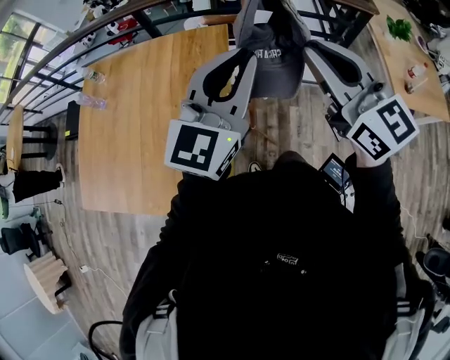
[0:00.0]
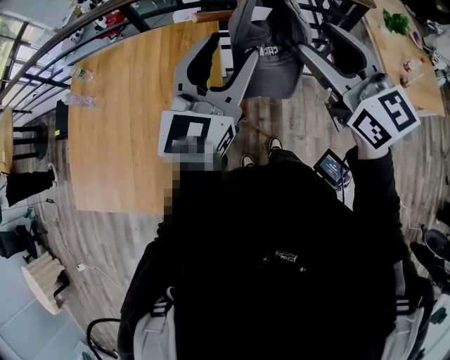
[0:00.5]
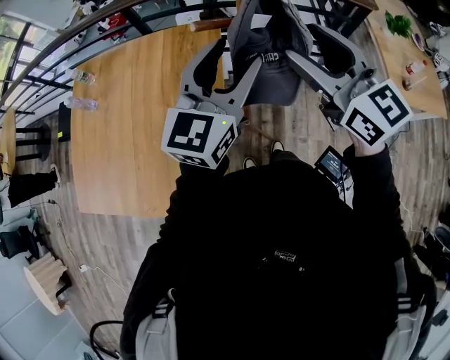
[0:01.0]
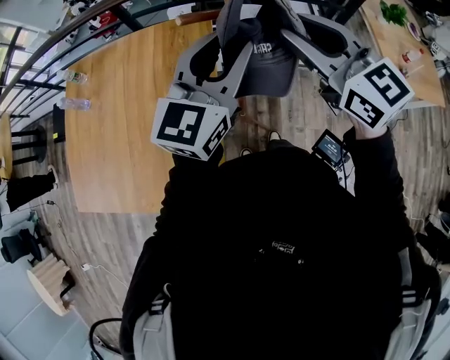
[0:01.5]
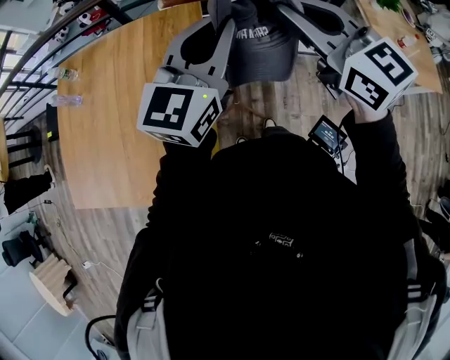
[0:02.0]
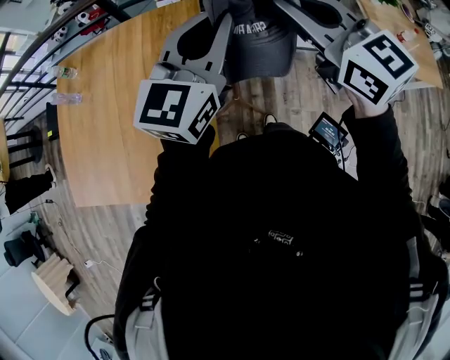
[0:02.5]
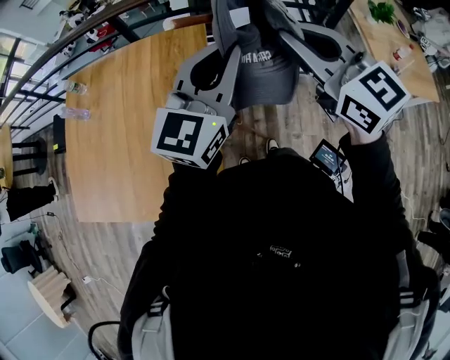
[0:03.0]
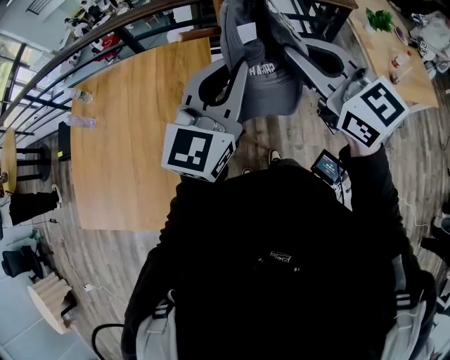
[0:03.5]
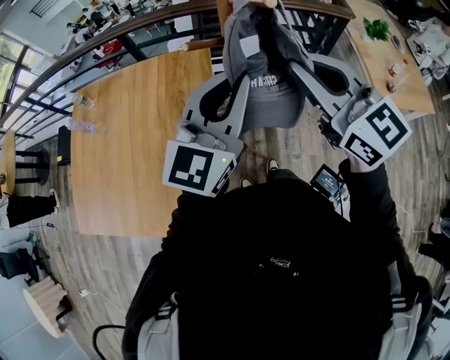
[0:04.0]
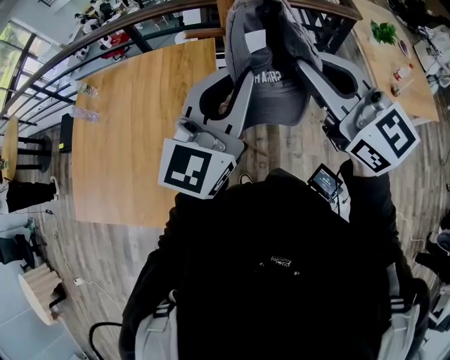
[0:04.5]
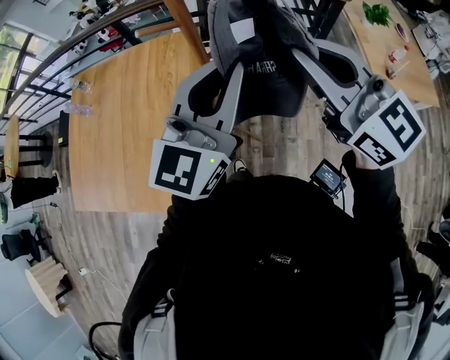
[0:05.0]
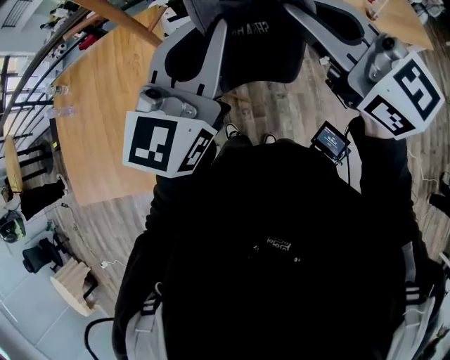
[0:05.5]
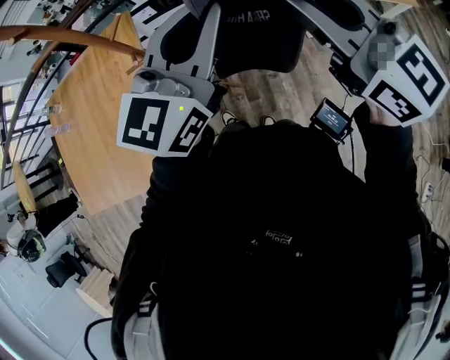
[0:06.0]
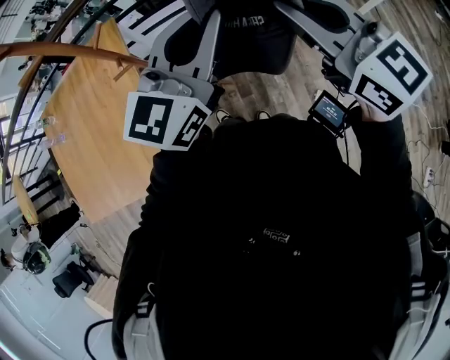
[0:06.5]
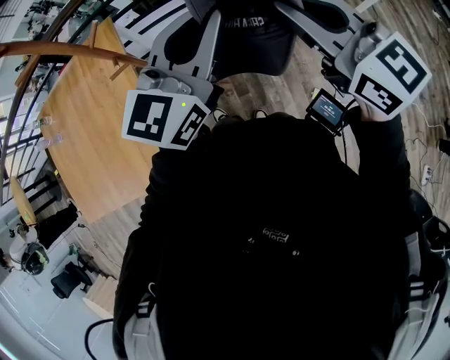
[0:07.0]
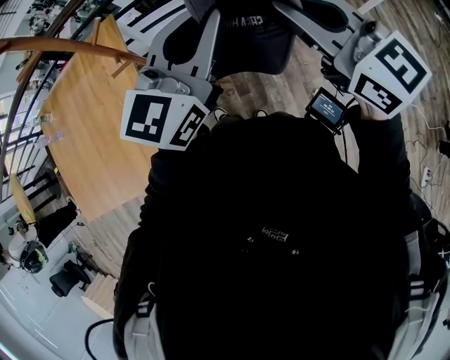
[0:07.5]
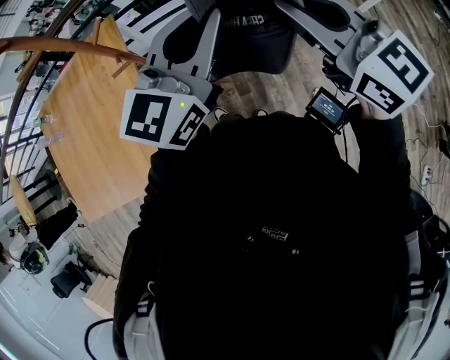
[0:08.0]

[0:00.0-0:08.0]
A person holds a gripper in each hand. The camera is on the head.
0:00.0 to 0:02.0: The left gripper changes place by about 5 cm, and opens, then closes once more; the right gripper heads forward, covering some 5 cm, and opens and closes again.
0:02.0 to 0:04.0: The two grippers go approximately 5 cm backward.
0:04.0 to 0:06.0: The two grippers go about 25 cm to the right and backward.
0:06.0 to 0:08.0: The right gripper ends up some 5 cm from where it was.

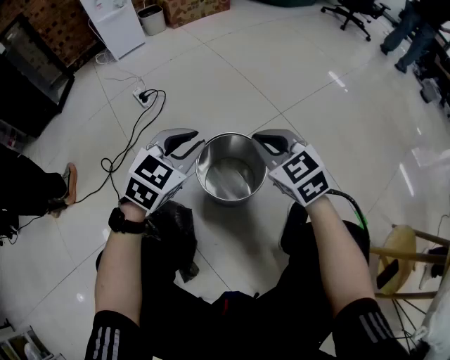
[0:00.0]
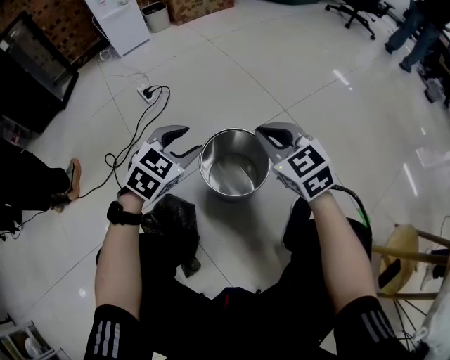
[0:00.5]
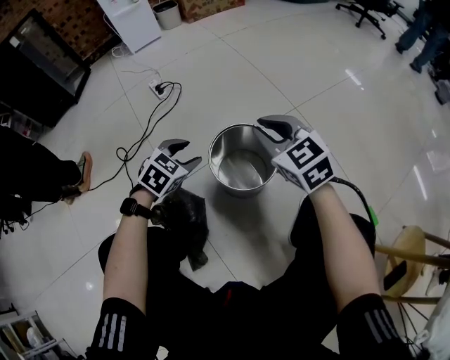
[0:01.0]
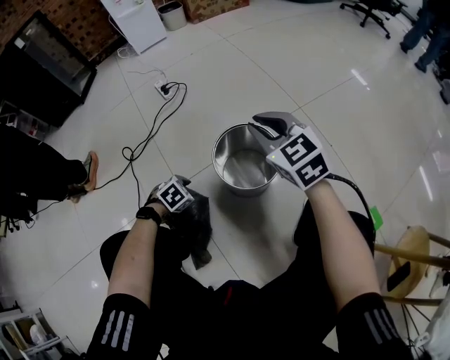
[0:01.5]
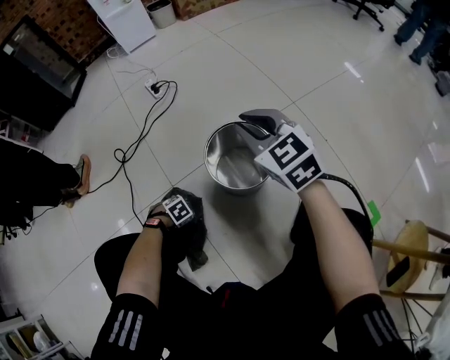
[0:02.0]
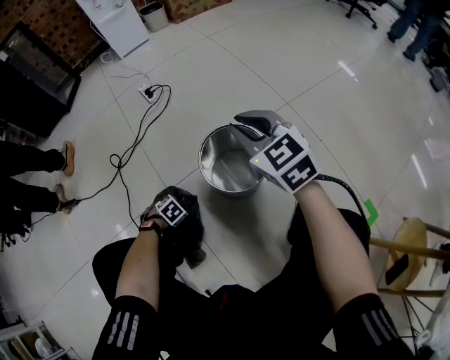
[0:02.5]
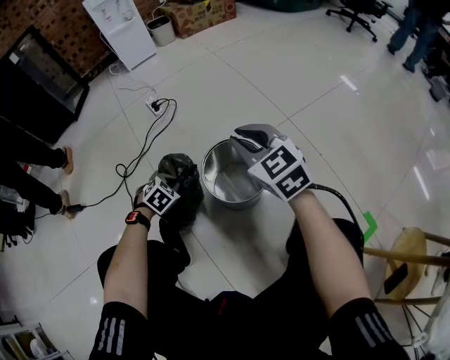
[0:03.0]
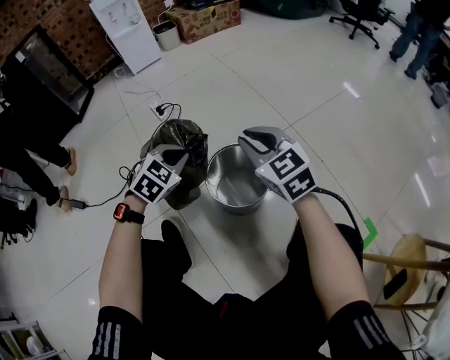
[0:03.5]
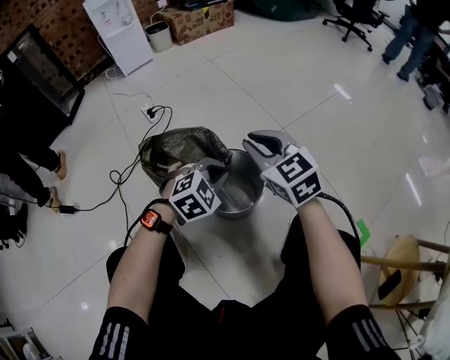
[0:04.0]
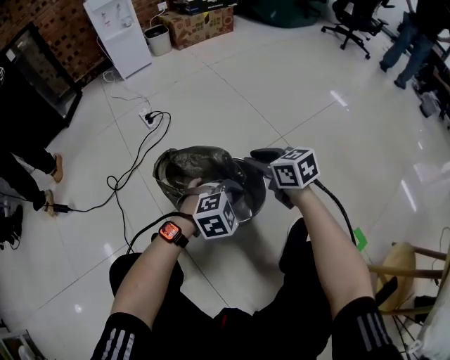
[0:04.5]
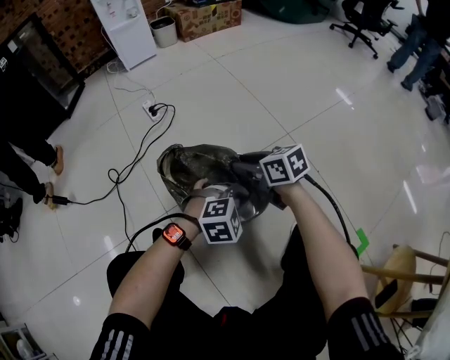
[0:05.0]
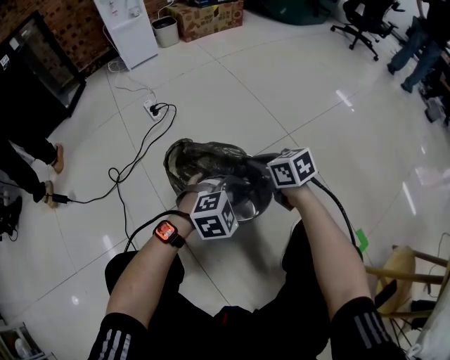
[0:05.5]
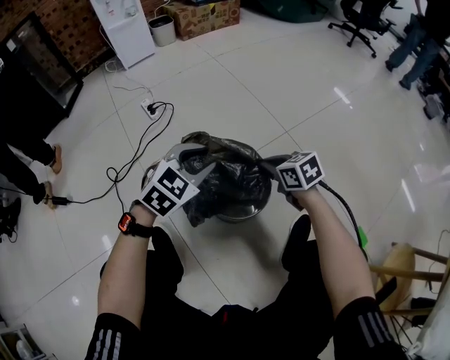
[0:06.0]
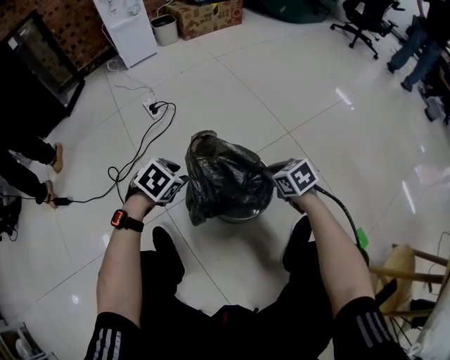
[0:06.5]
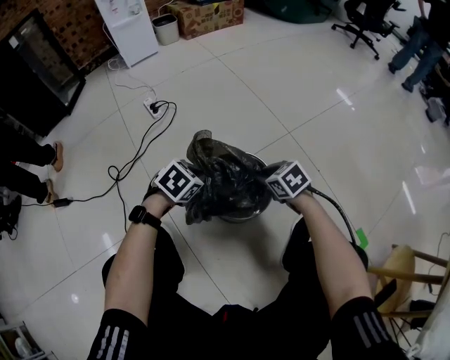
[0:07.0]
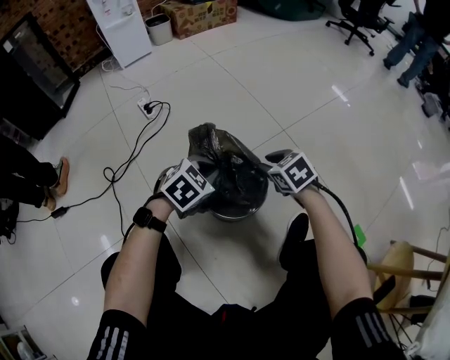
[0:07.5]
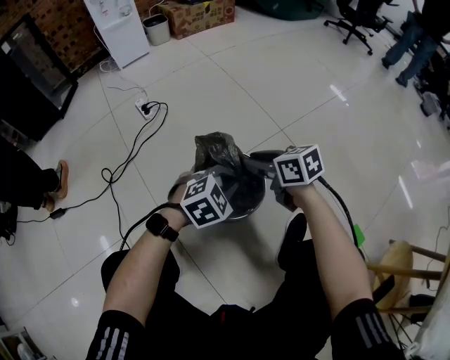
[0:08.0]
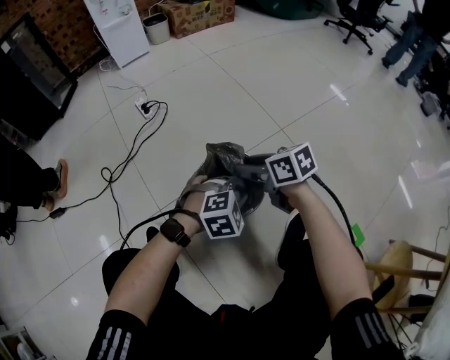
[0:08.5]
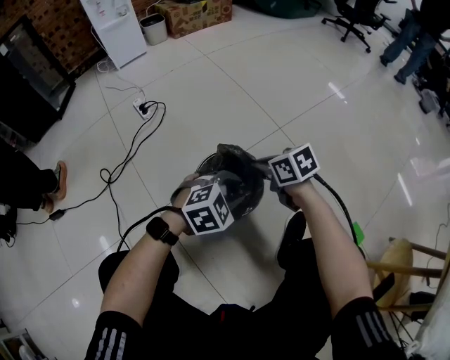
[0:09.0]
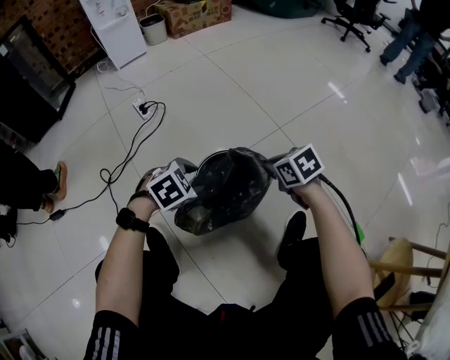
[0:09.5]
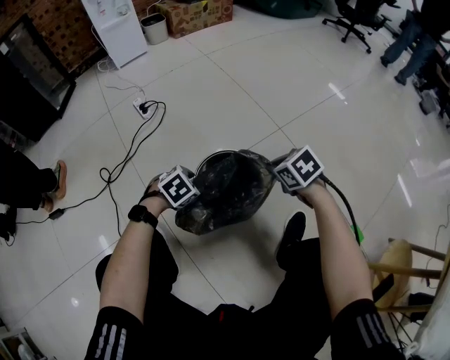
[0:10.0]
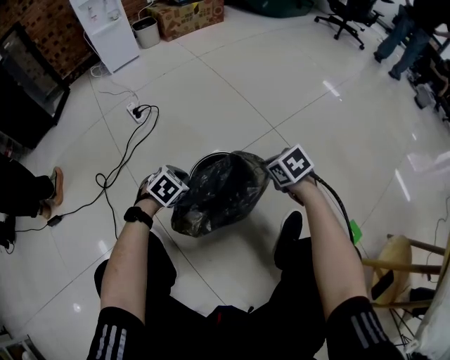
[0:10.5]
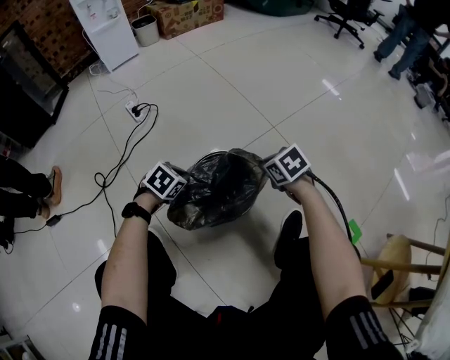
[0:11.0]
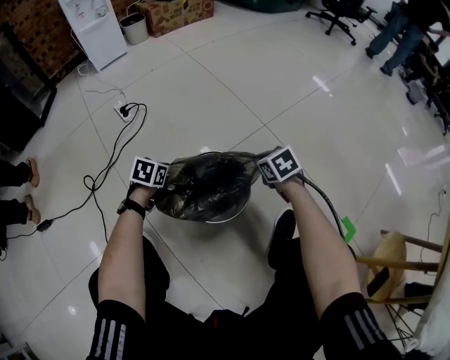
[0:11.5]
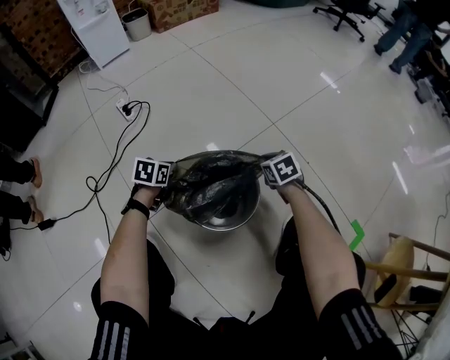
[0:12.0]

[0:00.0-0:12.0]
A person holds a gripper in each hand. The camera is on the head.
0:00.0 to 0:02.0: The right gripper ends up approximately 5 cm from where it was; the left gripper moves downward, about 40 cm, angles its fingers downward, by approximately 50 degrees, and opens.
0:02.0 to 0:04.0: The left gripper travels upward by approximately 30 cm, points its fingers roughly 40 degrees further upward, and closes up.
0:04.0 to 0:06.0: The left gripper heads to the left and upward, covering some 10 cm, and opens; the right gripper is displaced downward by about 15 cm, and rotates about 30 degrees.
0:06.0 to 0:08.0: The right gripper shifts by approximately 5 cm, while the left gripper heads to the right and downward, covering about 10 cm, and closes its fingers.
0:08.0 to 0:10.0: The left gripper is displaced to the left and downward by some 15 cm, rotates about 30 degrees, and opens up. Meanwhile the right gripper moves to the right and downward, about 10 cm, and changes its angle by about 30 degrees.
0:10.0 to 0:12.0: The left gripper is displaced forward, downward and to the left by roughly 15 cm, rotates roughly 40 degrees, and closes; the right gripper is displaced downward and forward by roughly 15 cm.

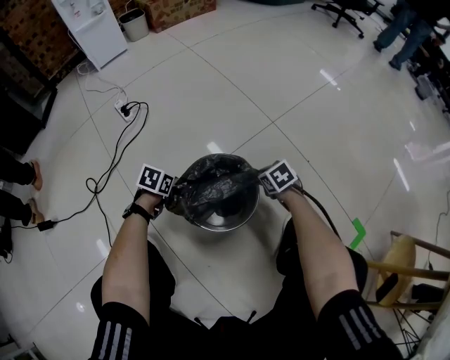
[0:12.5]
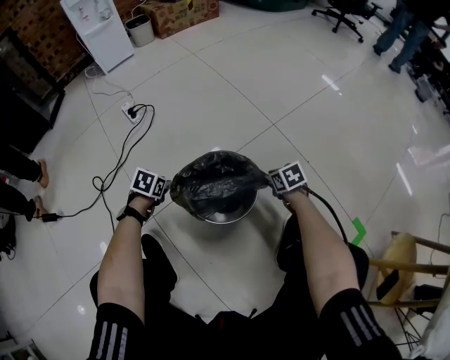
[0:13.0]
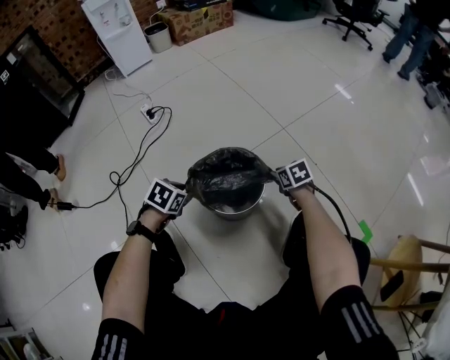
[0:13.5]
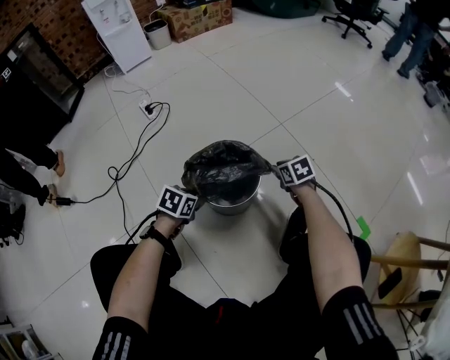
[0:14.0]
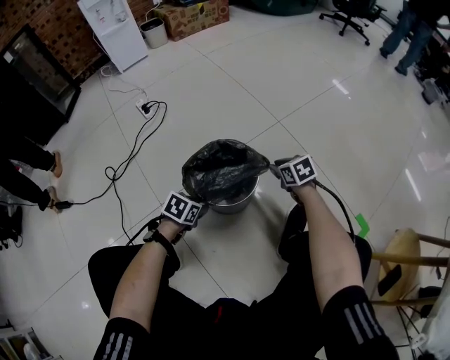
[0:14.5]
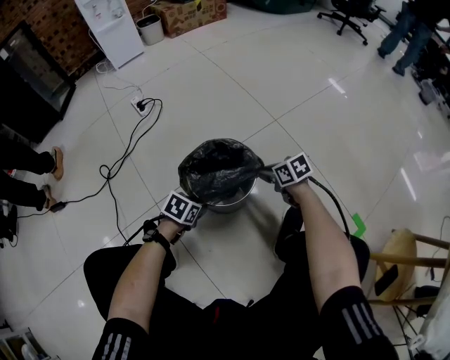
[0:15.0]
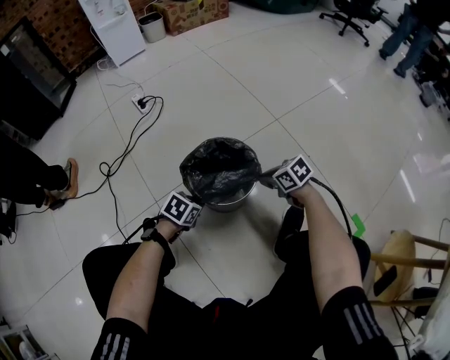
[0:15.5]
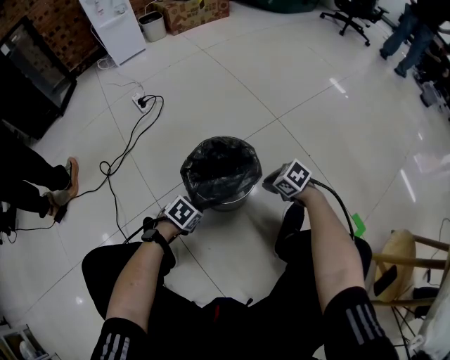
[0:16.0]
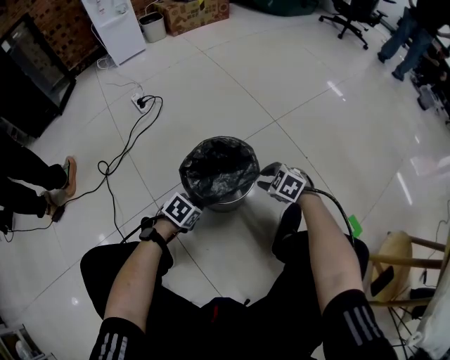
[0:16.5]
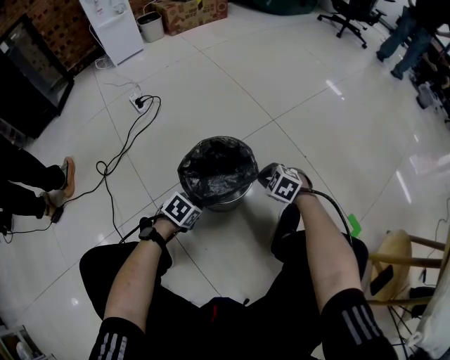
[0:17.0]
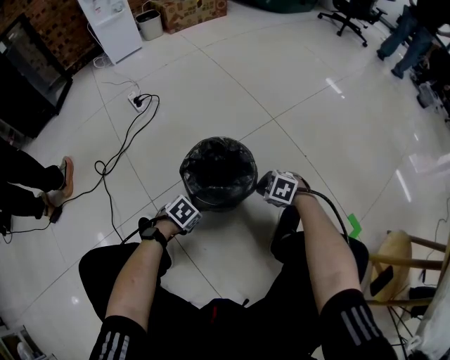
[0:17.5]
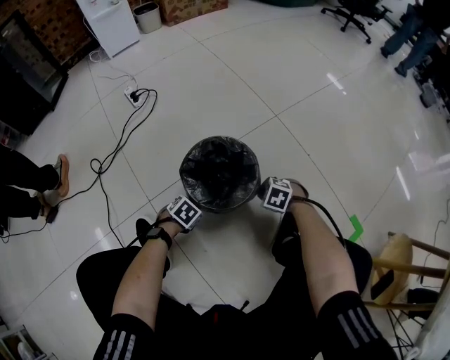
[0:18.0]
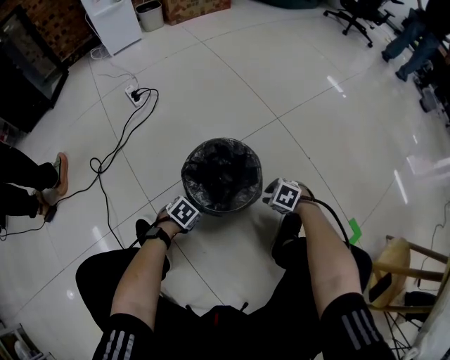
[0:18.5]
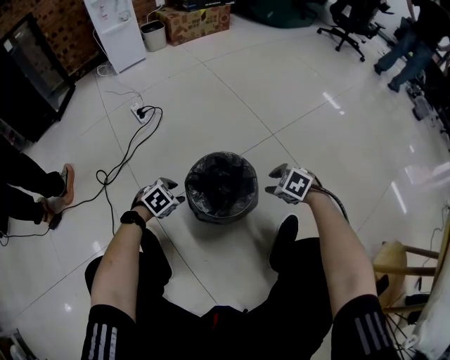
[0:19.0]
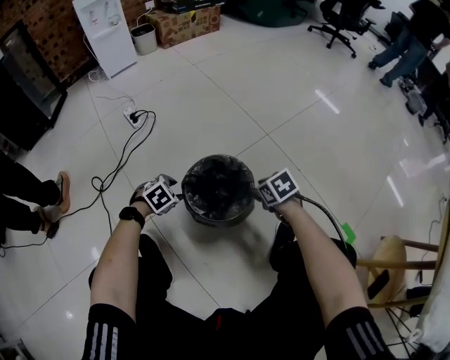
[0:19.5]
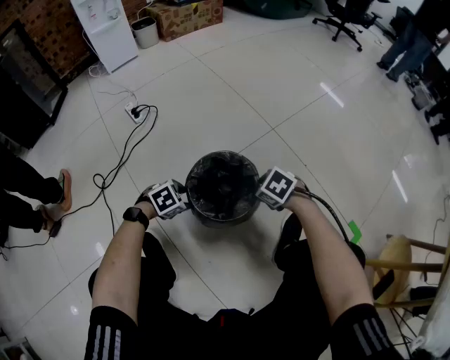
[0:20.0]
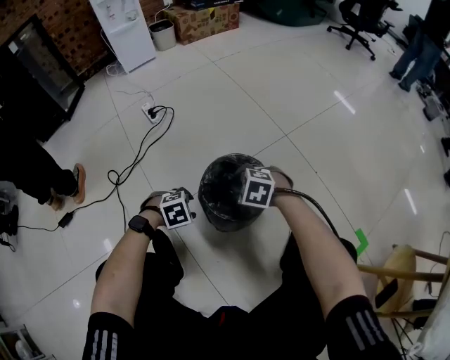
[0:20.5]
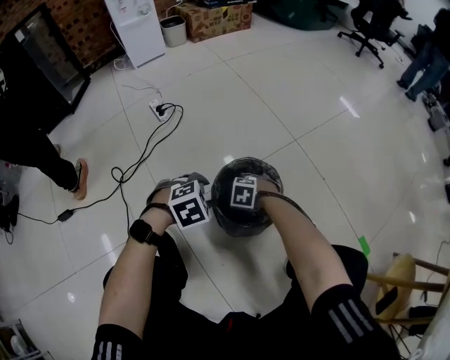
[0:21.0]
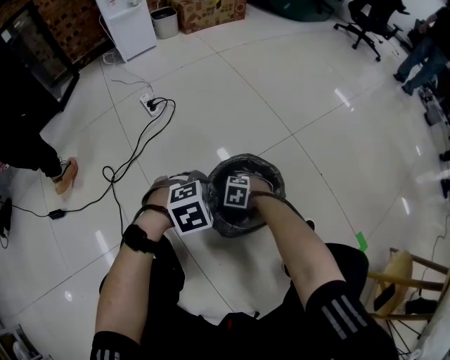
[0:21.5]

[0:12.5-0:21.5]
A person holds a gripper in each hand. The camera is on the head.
0:12.5 to 0:14.5: The right gripper shifts some 5 cm upward. The left gripper heads backward and to the right, covering some 20 cm, and opens its fingers.
0:14.5 to 0:17.0: The right gripper shifts by roughly 5 cm, and twists roughly 40 degrees counterclockwise, seen from behind. Meanwhile the left gripper closes up.
0:17.0 to 0:19.5: The left gripper travels downward and back again, about 10 cm each way, turns by about 30 degrees, and opens its fingers, while the right gripper reaches approximately 10 cm downward, then returns, swivels about 40 degrees, and opens up.
0:19.5 to 0:21.5: The right gripper moves some 25 cm, rotates around the line of its fingers by about 50 degrees, counterclockwise from behind, and opens its fingers. The left gripper travels upward by approximately 10 cm.
